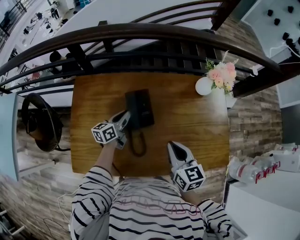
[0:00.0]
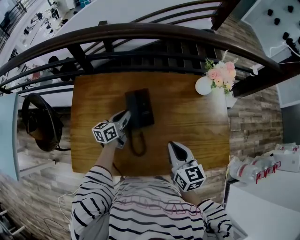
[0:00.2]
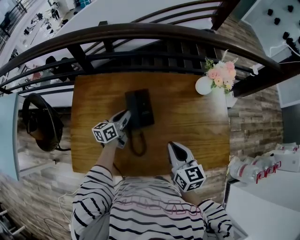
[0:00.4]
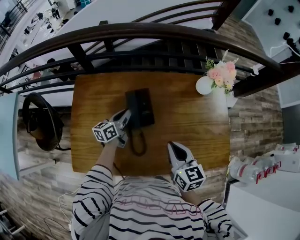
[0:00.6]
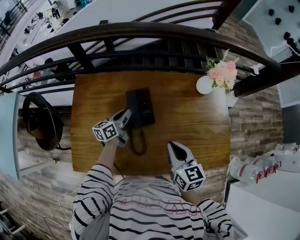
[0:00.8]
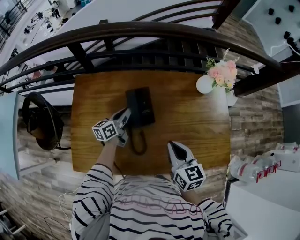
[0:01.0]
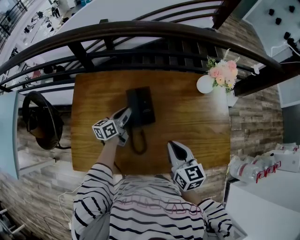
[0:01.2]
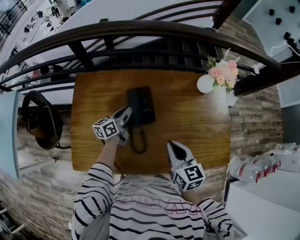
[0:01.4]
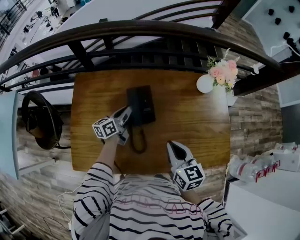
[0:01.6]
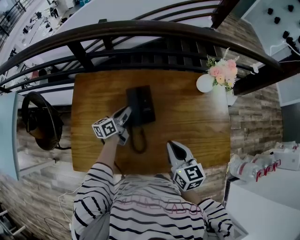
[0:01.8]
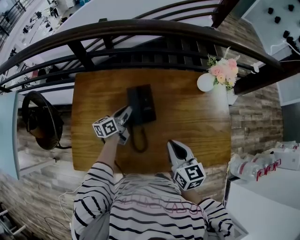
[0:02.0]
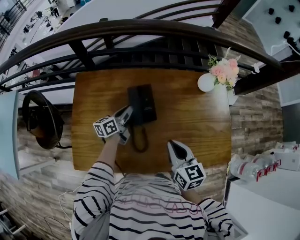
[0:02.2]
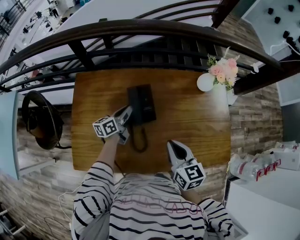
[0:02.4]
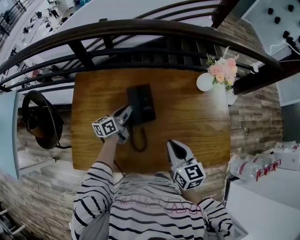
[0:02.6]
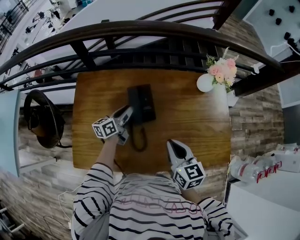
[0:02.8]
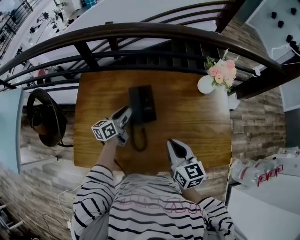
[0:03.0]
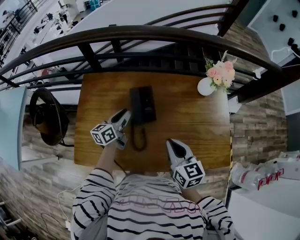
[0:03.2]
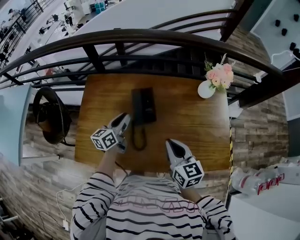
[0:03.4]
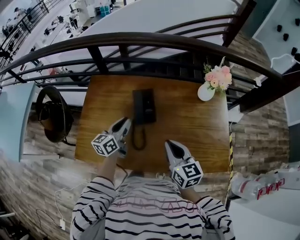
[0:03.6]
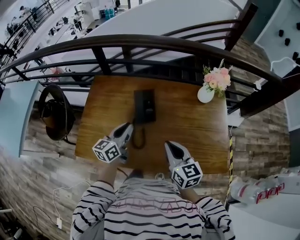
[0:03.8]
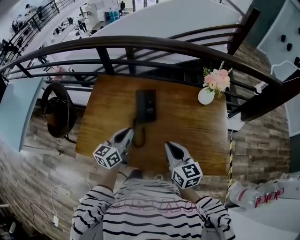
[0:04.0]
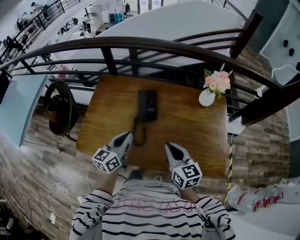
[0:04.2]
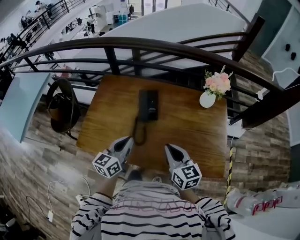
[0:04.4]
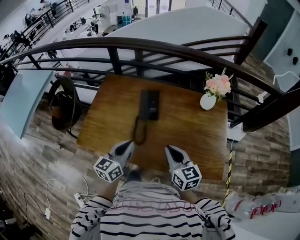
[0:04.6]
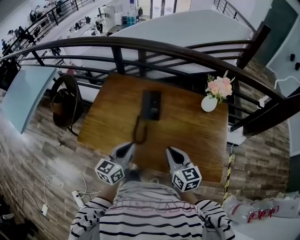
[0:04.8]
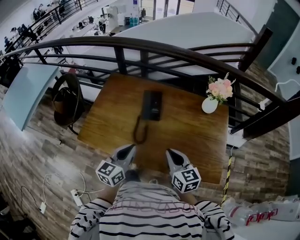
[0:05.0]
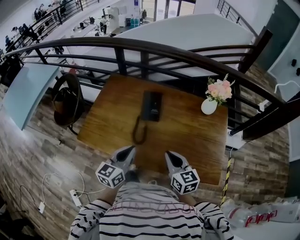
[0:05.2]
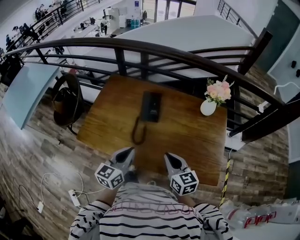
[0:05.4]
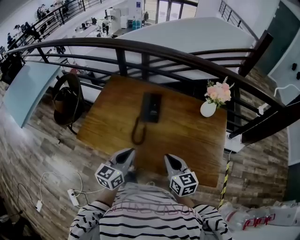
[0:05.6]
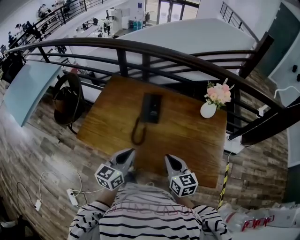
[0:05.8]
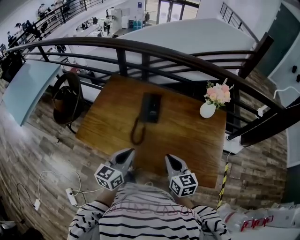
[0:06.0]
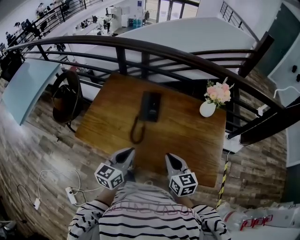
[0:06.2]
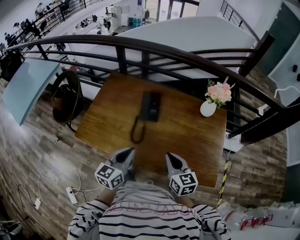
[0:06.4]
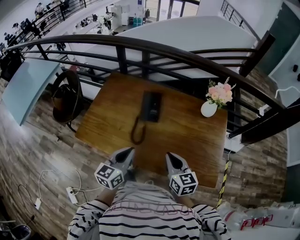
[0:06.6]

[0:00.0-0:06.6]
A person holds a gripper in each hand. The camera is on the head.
0:00.0 to 0:01.6: The grippers make only small movements.
0:01.6 to 0:03.2: The left gripper travels backward by approximately 5 cm.
0:03.2 to 0:05.0: The right gripper heads backward, covering roughly 10 cm. The left gripper moves backward, roughly 30 cm, changes its angle by about 20 degrees, and closes.
0:05.0 to 0:06.6: There are only small adjustments of the grippers.

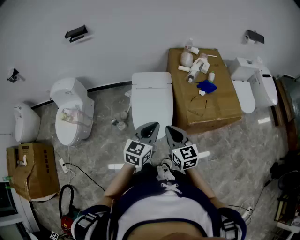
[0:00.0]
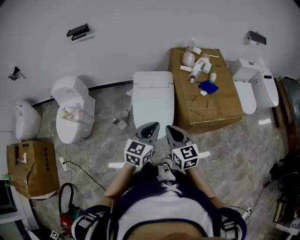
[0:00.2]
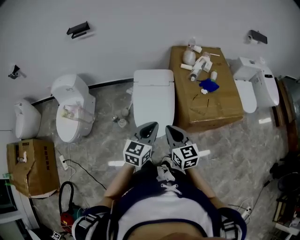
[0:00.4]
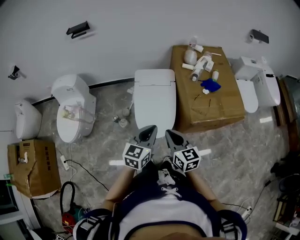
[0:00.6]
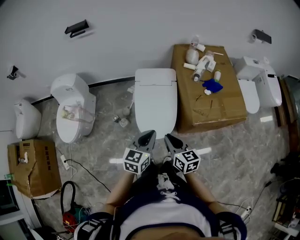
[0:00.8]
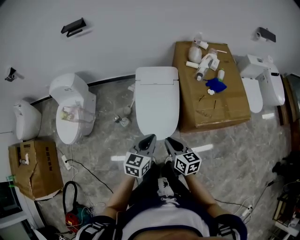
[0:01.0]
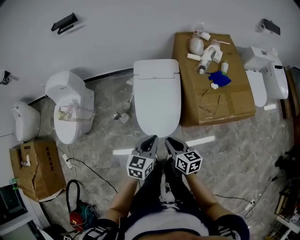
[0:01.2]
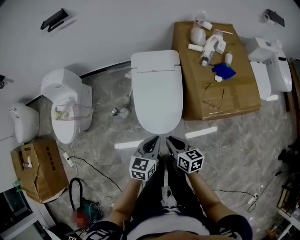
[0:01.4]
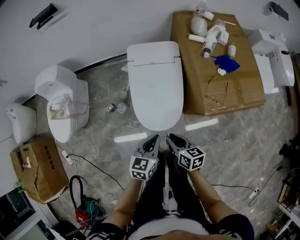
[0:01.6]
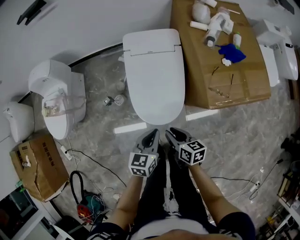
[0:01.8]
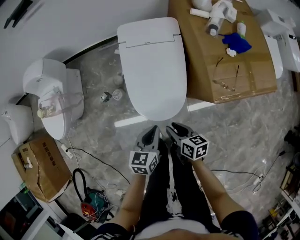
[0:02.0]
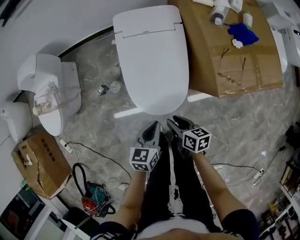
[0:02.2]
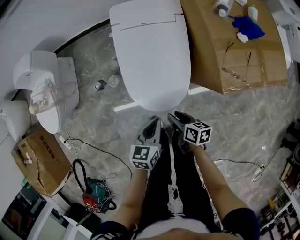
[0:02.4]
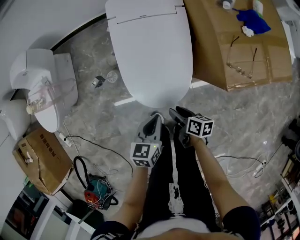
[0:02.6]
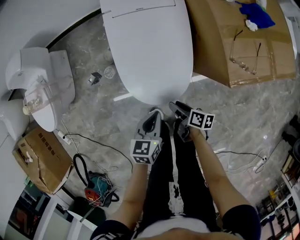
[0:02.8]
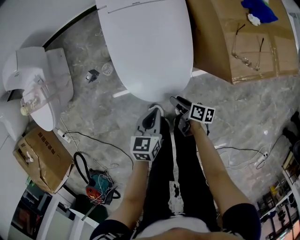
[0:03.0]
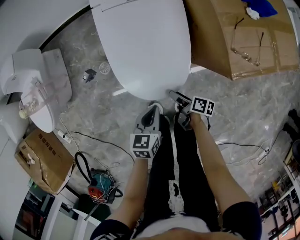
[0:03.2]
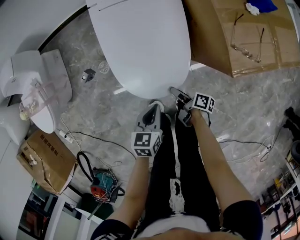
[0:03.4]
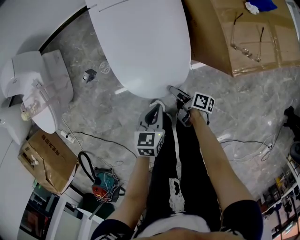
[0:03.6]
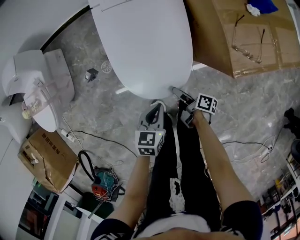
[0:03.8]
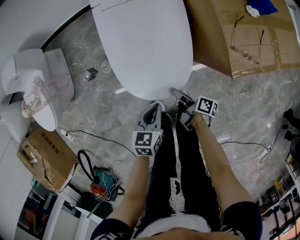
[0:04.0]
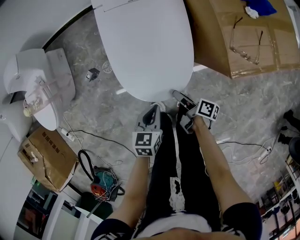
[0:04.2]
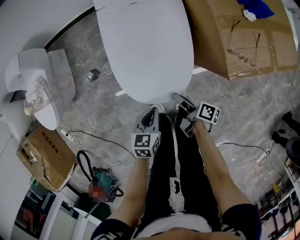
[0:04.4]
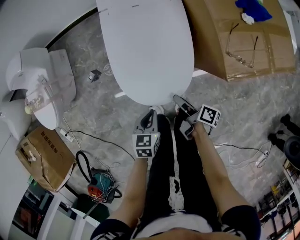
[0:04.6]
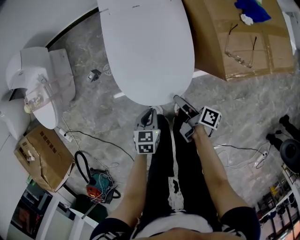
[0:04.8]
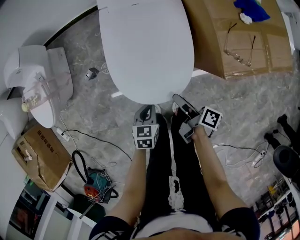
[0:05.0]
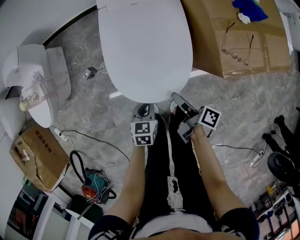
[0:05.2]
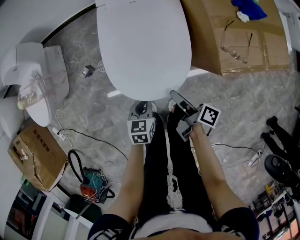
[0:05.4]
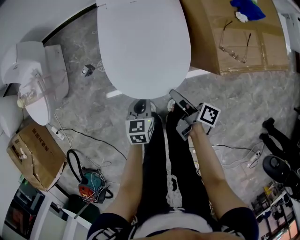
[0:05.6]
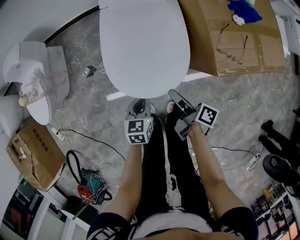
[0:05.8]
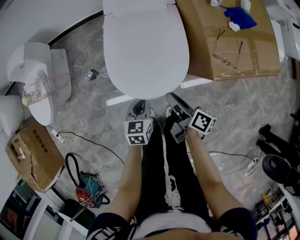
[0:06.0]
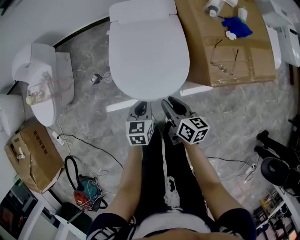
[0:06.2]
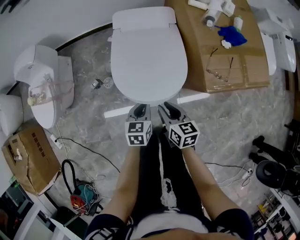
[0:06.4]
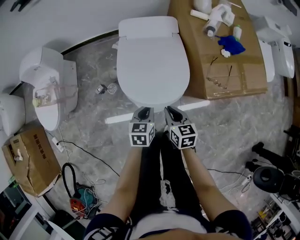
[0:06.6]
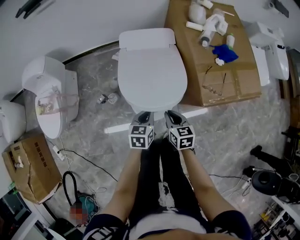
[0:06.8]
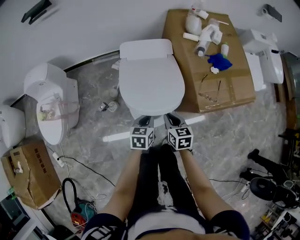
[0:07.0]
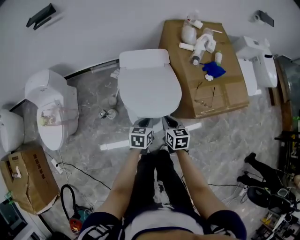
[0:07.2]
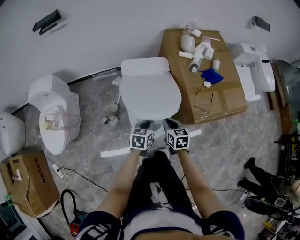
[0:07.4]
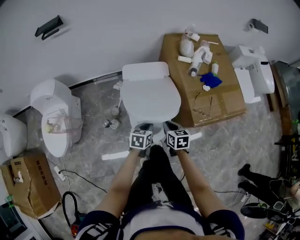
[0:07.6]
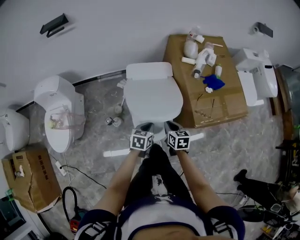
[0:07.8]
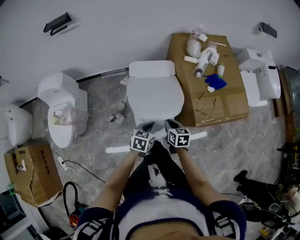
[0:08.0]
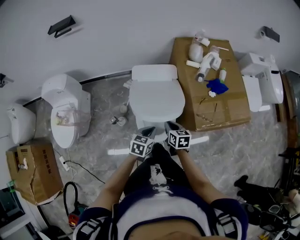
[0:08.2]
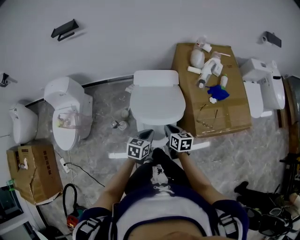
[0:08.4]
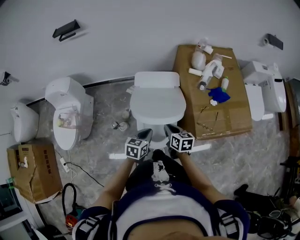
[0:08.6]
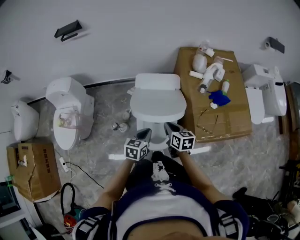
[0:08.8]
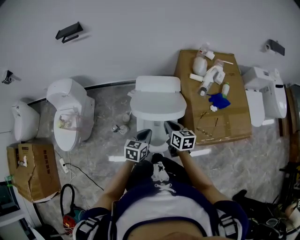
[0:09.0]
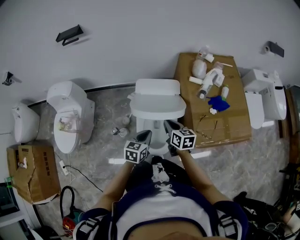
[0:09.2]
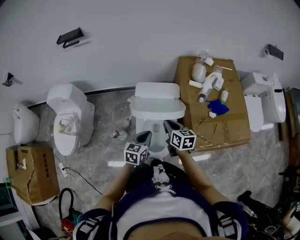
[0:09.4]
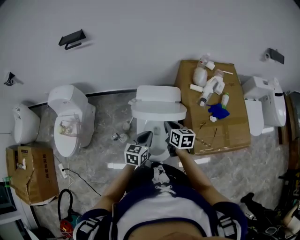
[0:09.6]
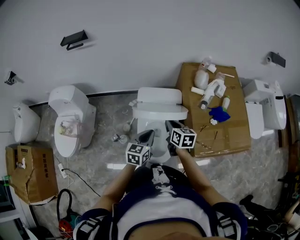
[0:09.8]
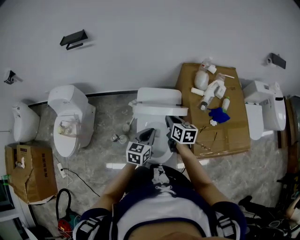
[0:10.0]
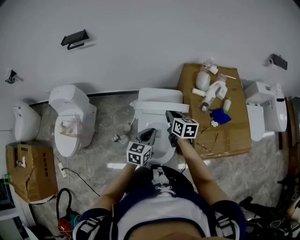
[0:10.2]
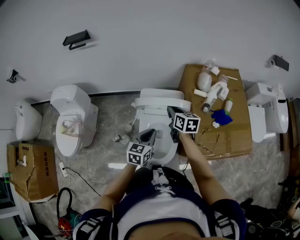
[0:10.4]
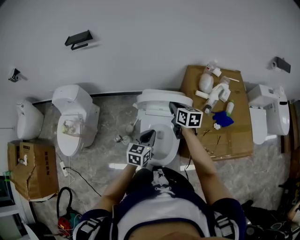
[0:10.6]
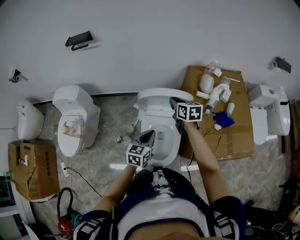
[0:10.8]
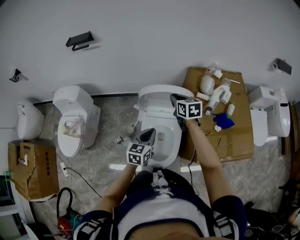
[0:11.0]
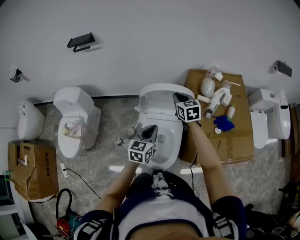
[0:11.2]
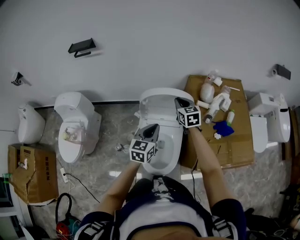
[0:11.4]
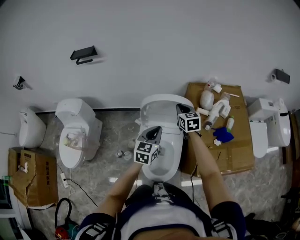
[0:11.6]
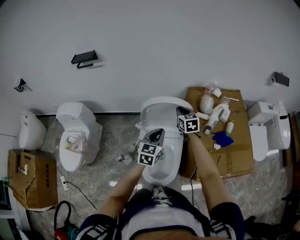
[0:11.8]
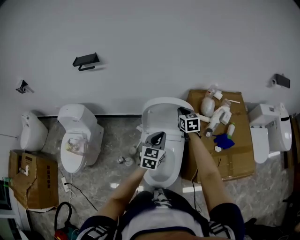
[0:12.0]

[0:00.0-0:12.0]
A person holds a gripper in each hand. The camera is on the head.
0:00.0 to 0:01.6: Both grippers travel together downward, some 25 cm. The left gripper rotates approximately 20 degrees; the right gripper rotates approximately 40 degrees.
0:01.6 to 0:03.0: Both grippers travel together downward, about 25 cm. The right gripper rotates some 40 degrees, and opens up.
0:03.0 to 0:04.4: The right gripper goes roughly 5 cm upward, and swivels roughly 20 degrees.
0:04.4 to 0:06.0: The right gripper is displaced upward by approximately 15 cm. The left gripper changes place by roughly 5 cm.
0:06.0 to 0:07.6: Both grippers travel together upward and forward, roughly 15 cm. The right gripper rolls counterclockwise, seen from behind, by about 50 degrees, and closes.
0:07.6 to 0:09.0: The left gripper is displaced upward by about 10 cm; the right gripper is displaced forward and upward by about 10 cm.
0:09.0 to 0:10.4: The left gripper travels forward and upward by some 10 cm; the right gripper moves forward and upward, some 15 cm.
0:10.4 to 0:12.0: The left gripper goes some 10 cm forward and upward. Meanwhile the right gripper moves forward, approximately 15 cm, and swivels roughly 20 degrees.

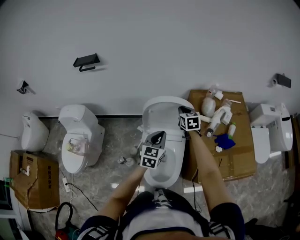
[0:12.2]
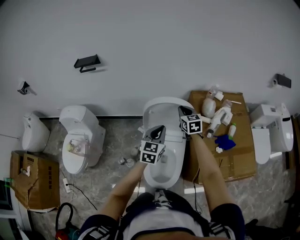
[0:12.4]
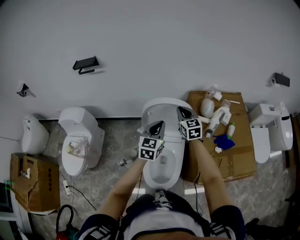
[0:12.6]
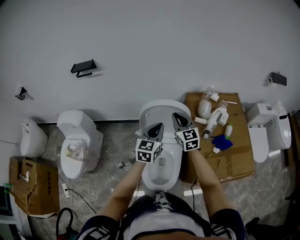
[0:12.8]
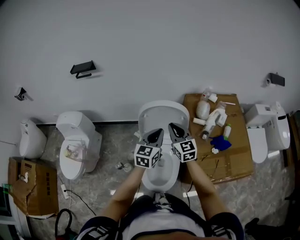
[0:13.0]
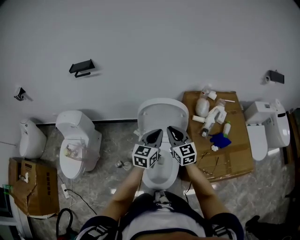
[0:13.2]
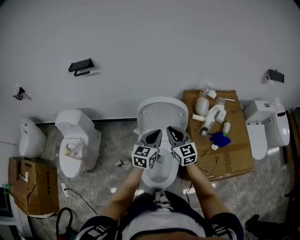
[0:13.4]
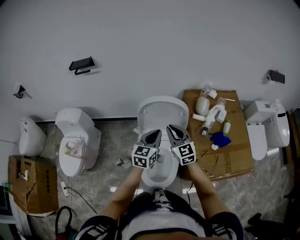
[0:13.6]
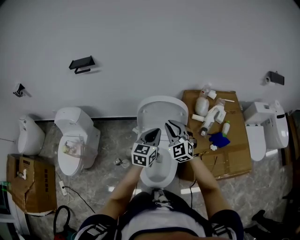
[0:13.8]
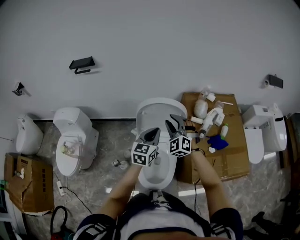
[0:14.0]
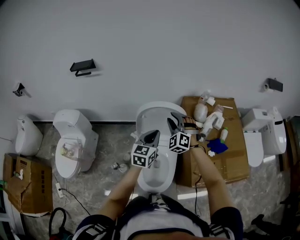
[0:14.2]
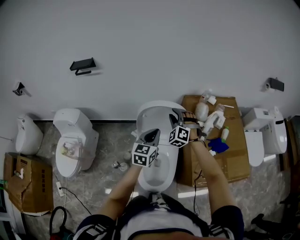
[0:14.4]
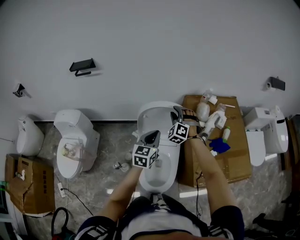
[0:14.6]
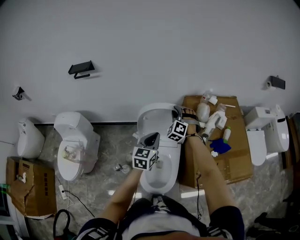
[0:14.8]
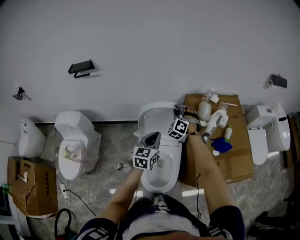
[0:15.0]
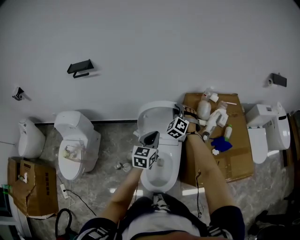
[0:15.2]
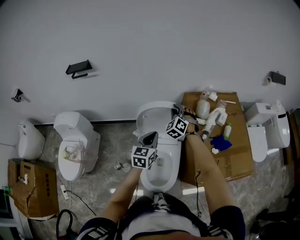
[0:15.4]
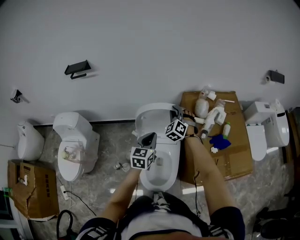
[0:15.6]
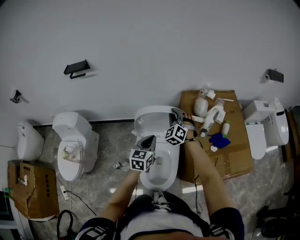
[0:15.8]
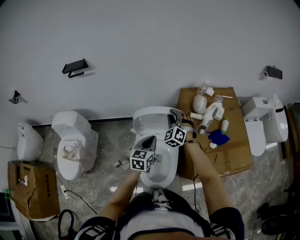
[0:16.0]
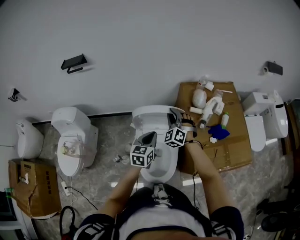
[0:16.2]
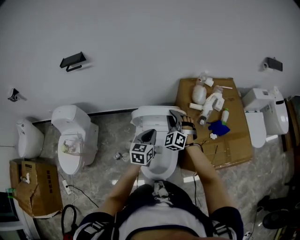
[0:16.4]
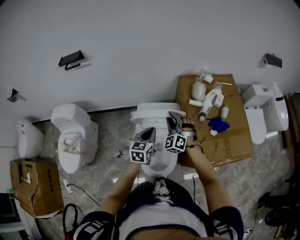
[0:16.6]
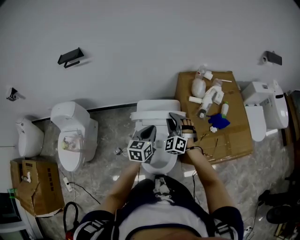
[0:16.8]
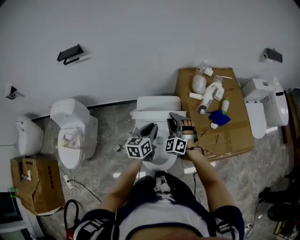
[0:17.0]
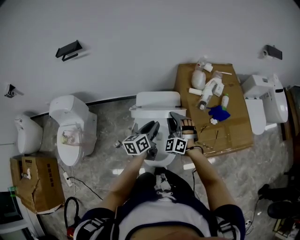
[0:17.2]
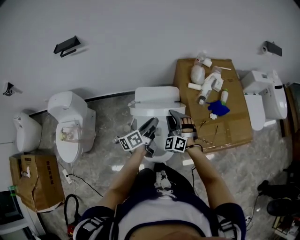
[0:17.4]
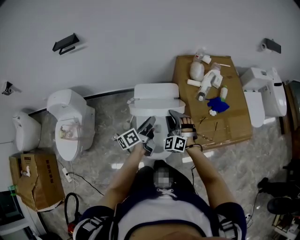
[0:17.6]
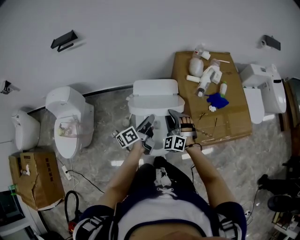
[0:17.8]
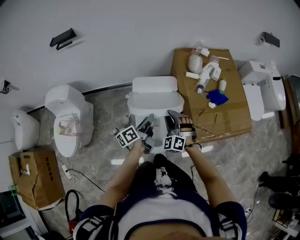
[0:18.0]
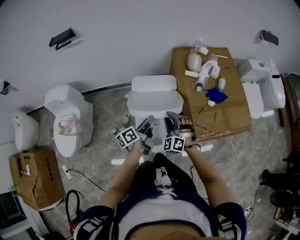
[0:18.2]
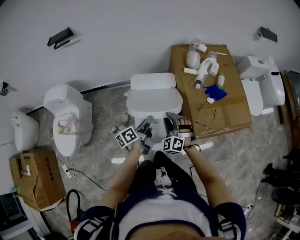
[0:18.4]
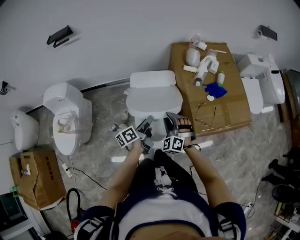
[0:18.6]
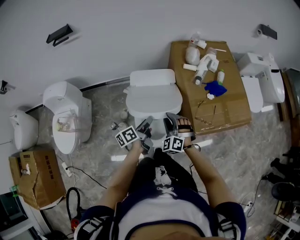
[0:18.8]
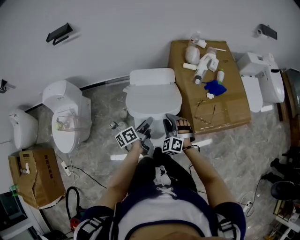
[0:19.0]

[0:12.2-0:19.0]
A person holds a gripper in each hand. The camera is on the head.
0:12.2 to 0:13.6: The right gripper moves backward, about 15 cm, and rotates roughly 30 degrees.
0:13.6 to 0:15.0: The right gripper travels forward by roughly 20 cm, and rotates around the line of its fingers by about 50 degrees, counterclockwise from behind.
0:15.0 to 0:16.2: The left gripper shifts by about 5 cm; the right gripper travels backward by roughly 10 cm.
0:16.2 to 0:17.6: The right gripper travels backward by approximately 15 cm, while the left gripper is displaced backward by roughly 5 cm, twists about 50 degrees counterclockwise, seen from behind, and opens its fingers.
0:17.6 to 0:19.0: The grippers both shift backward and downward by approximately 10 cm.
